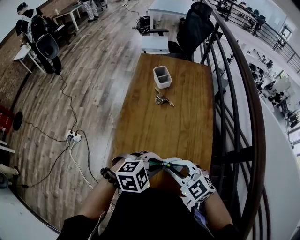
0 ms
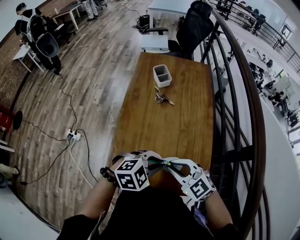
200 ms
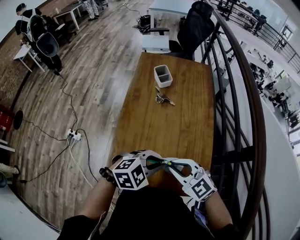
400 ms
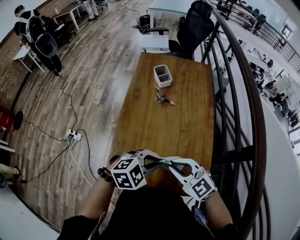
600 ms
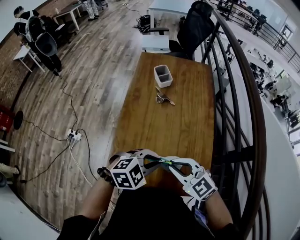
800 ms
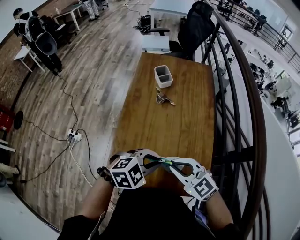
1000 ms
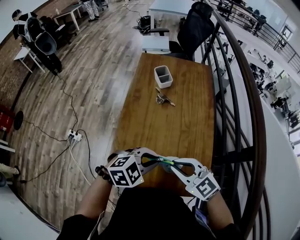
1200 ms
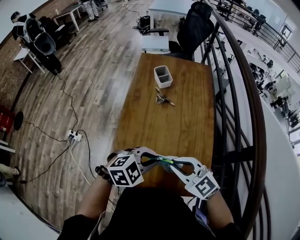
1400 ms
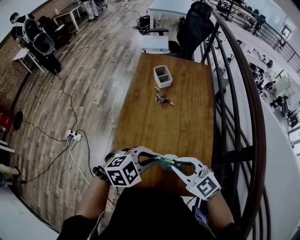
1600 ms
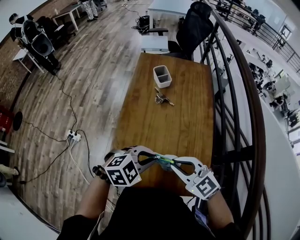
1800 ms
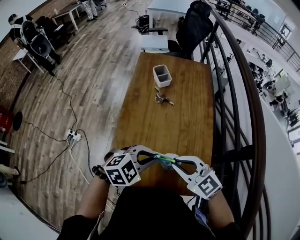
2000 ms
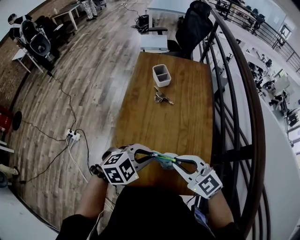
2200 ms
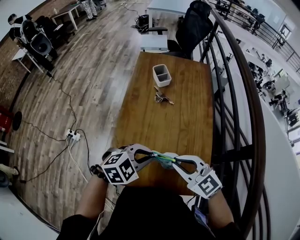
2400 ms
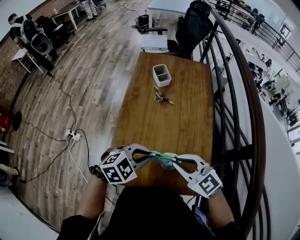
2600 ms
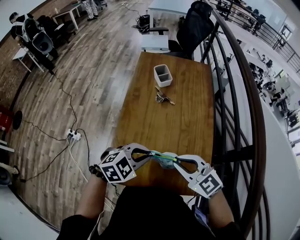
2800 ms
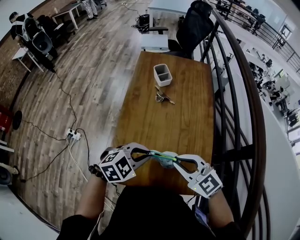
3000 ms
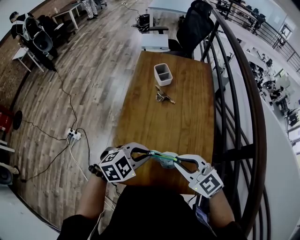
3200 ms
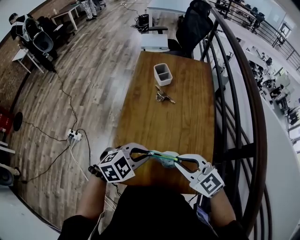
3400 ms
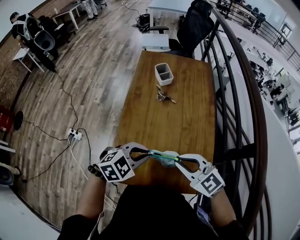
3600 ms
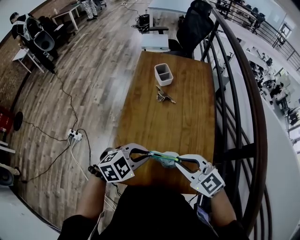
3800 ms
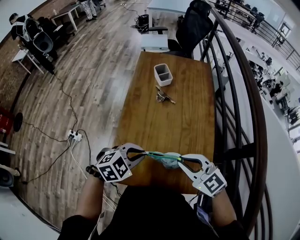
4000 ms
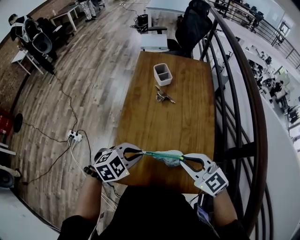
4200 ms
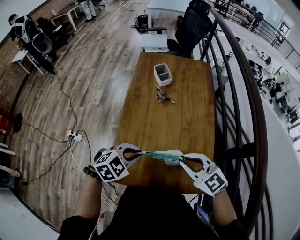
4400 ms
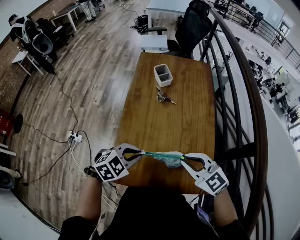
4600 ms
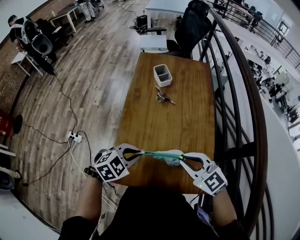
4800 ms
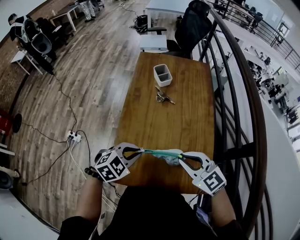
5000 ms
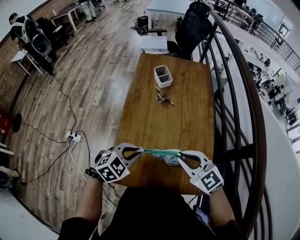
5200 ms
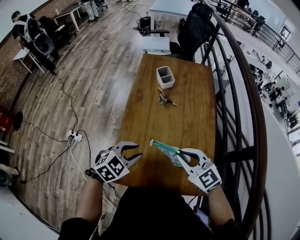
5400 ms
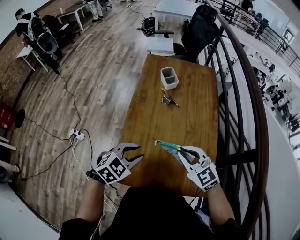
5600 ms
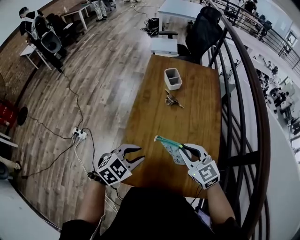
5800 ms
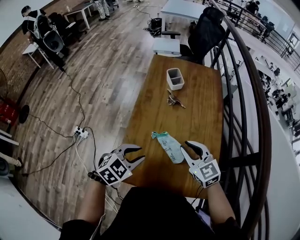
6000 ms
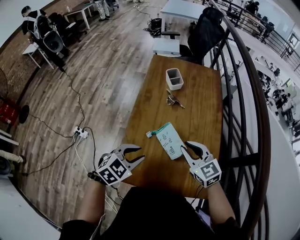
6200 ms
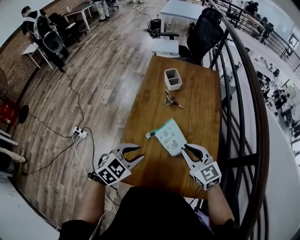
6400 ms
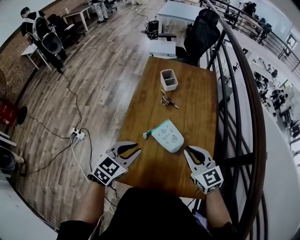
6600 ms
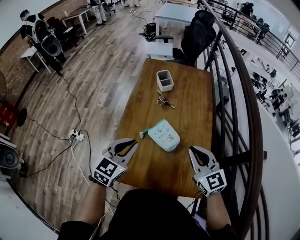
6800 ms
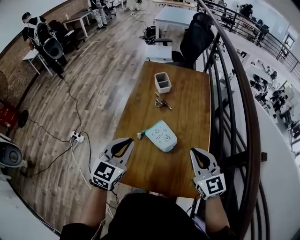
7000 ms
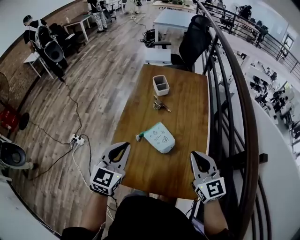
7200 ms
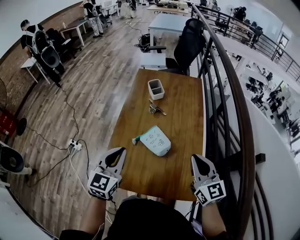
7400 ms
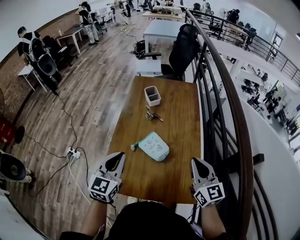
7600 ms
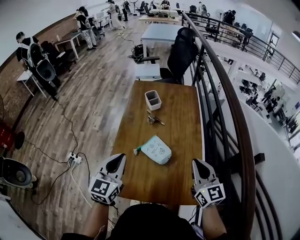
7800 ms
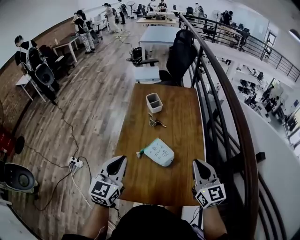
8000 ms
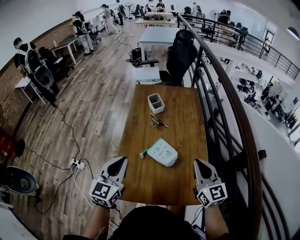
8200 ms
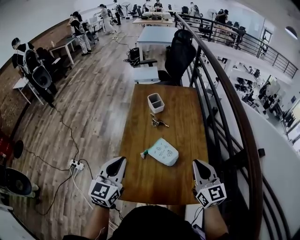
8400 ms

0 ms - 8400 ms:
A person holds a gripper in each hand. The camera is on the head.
0 ms - 1400 ms: The grippers move only a little.
1400 ms - 2800 ms: The grippers stay close to where they were, moving slightly.
2800 ms - 4200 ms: The grippers make only small movements.
4200 ms - 5600 ms: The right gripper changes place by about 5 cm.
5600 ms - 7000 ms: The right gripper heads to the right and upward, covering roughly 10 cm, and turns by roughly 20 degrees. Meanwhile the left gripper goes roughly 10 cm upward, turns by some 40 degrees, and closes.
7000 ms - 8400 ms: The left gripper travels to the left by roughly 5 cm.

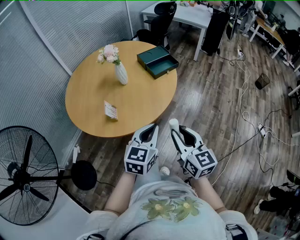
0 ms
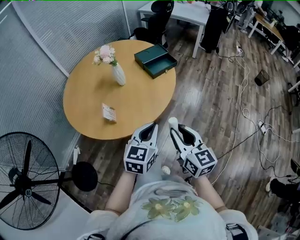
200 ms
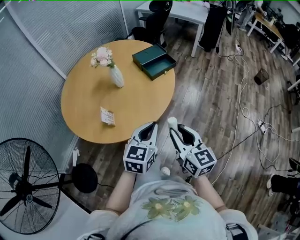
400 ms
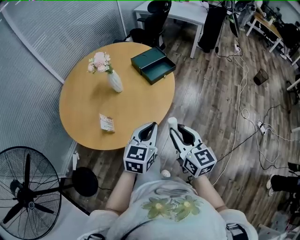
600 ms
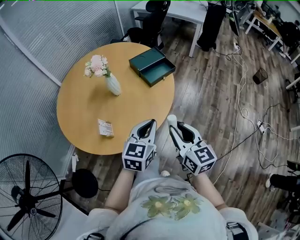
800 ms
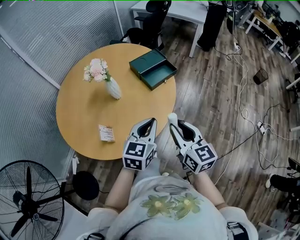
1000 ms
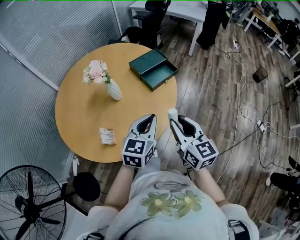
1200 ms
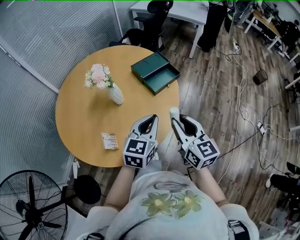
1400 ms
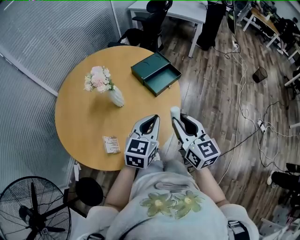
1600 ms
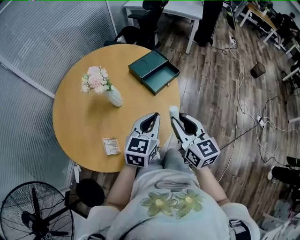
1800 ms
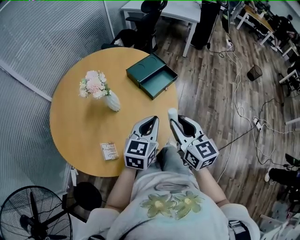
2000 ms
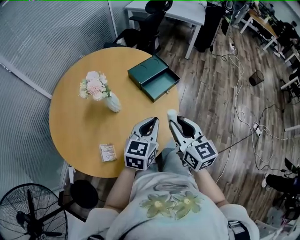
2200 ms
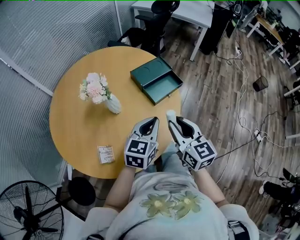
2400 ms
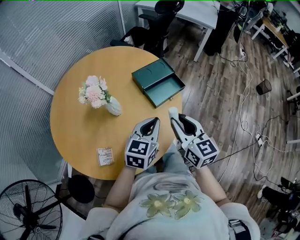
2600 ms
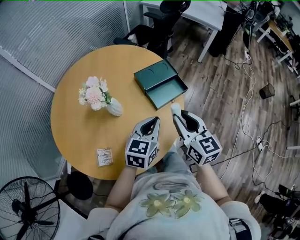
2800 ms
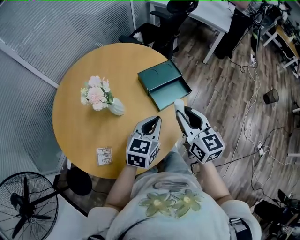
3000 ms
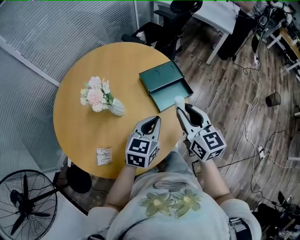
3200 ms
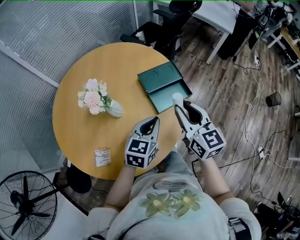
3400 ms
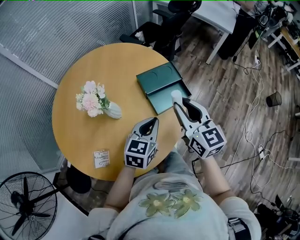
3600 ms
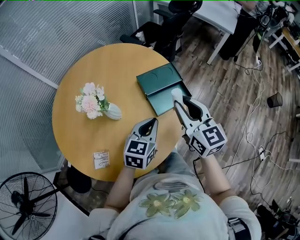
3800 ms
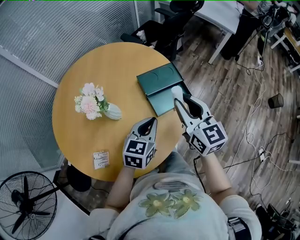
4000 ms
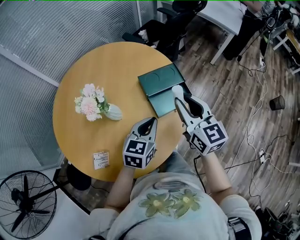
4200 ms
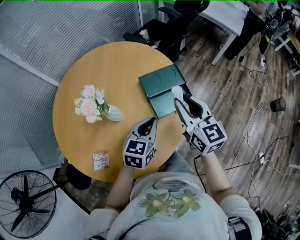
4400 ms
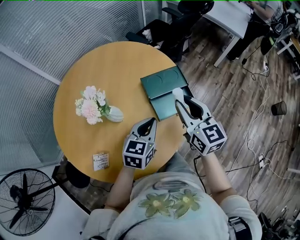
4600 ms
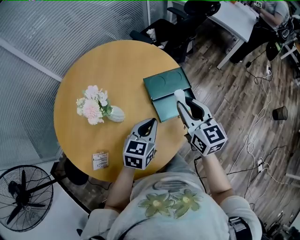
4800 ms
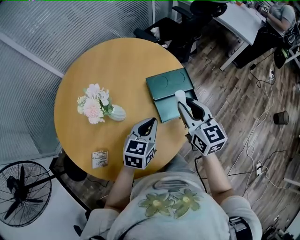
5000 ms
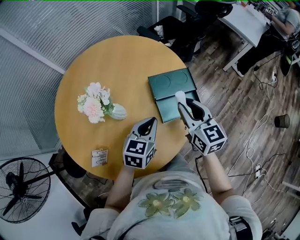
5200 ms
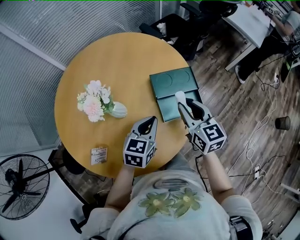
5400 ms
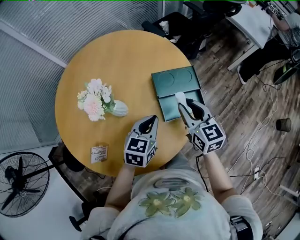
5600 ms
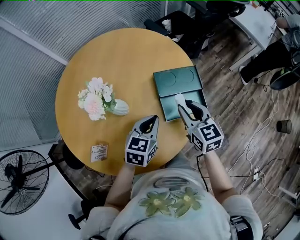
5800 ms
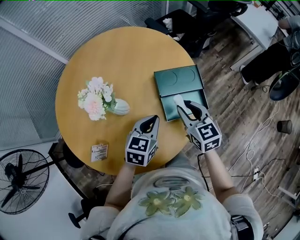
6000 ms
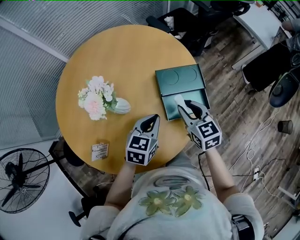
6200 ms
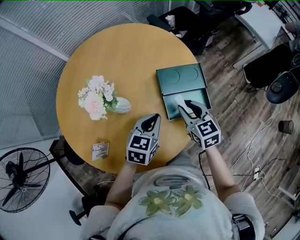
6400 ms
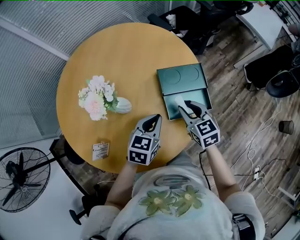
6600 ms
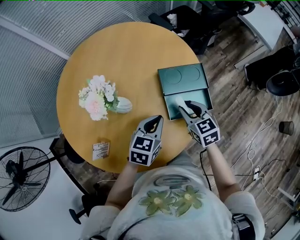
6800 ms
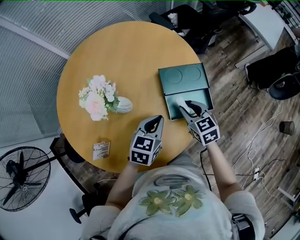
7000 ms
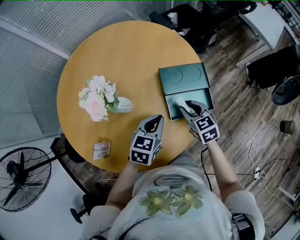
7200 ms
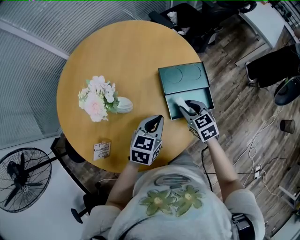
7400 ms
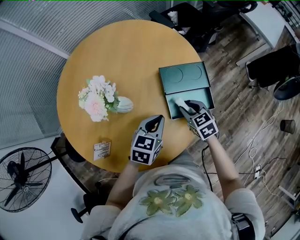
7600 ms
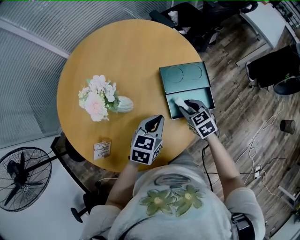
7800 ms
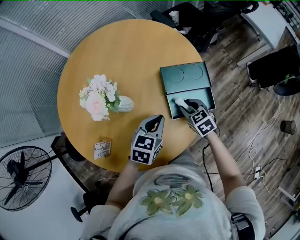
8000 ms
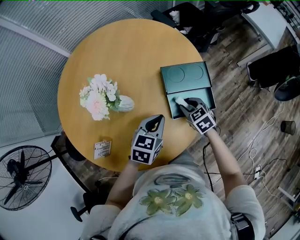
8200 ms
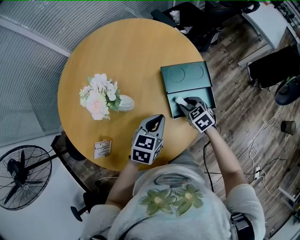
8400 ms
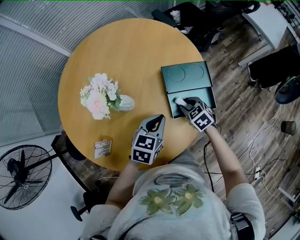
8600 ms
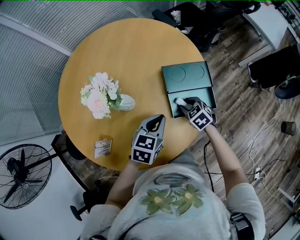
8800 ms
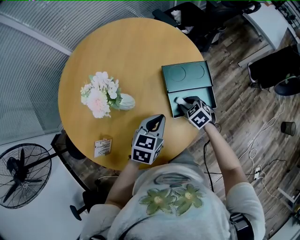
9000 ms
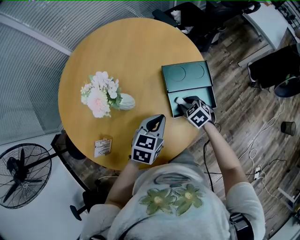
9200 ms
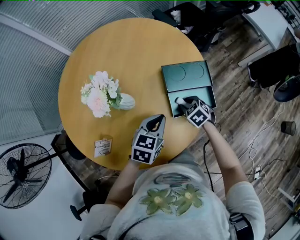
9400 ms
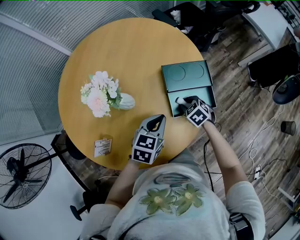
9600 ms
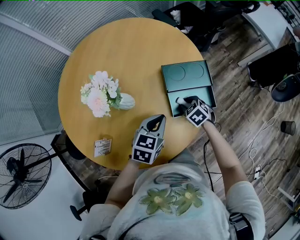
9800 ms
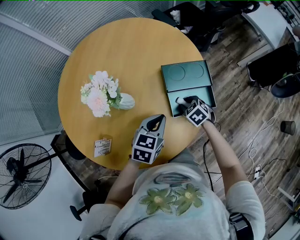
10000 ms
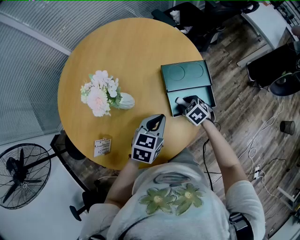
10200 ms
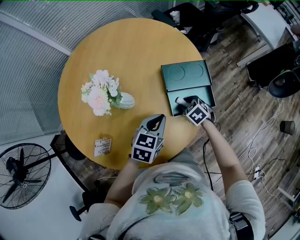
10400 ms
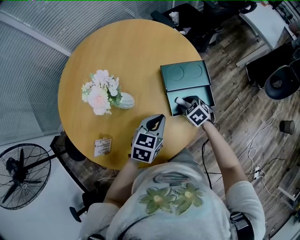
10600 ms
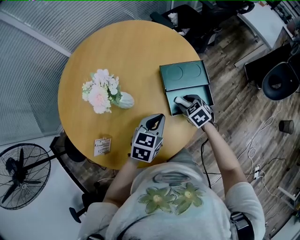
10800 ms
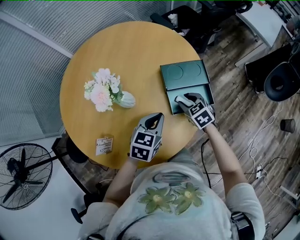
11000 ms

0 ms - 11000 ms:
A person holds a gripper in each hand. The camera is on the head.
0 ms - 1600 ms: The grippers both shift forward by approximately 30 cm.
1600 ms - 3200 ms: Both grippers move forward, about 20 cm.
3200 ms - 4800 ms: The left gripper heads forward, covering approximately 5 cm. Meanwhile the right gripper travels forward by about 10 cm.
4800 ms - 6200 ms: The left gripper moves roughly 5 cm; the right gripper heads downward, covering some 10 cm, and swivels approximately 20 degrees.
6200 ms - 7800 ms: The right gripper moves downward, some 10 cm, and changes its angle by roughly 20 degrees.
7800 ms - 9400 ms: The right gripper travels downward by about 5 cm.
9400 ms - 11000 ms: The right gripper shifts approximately 5 cm upward.

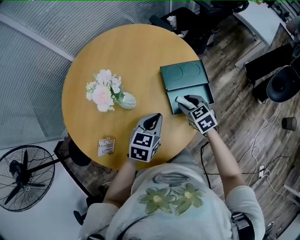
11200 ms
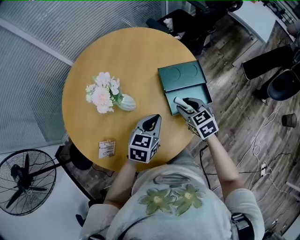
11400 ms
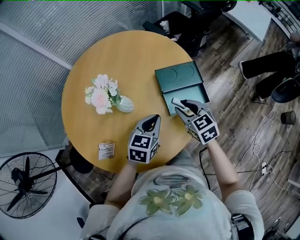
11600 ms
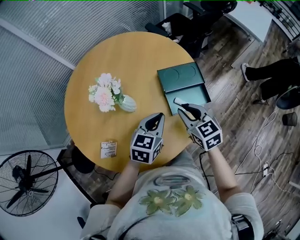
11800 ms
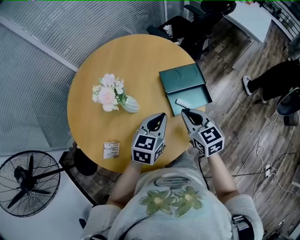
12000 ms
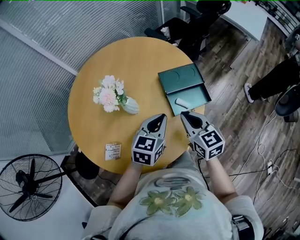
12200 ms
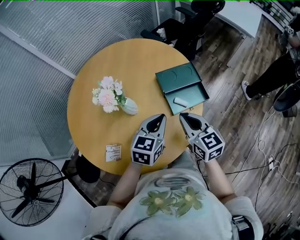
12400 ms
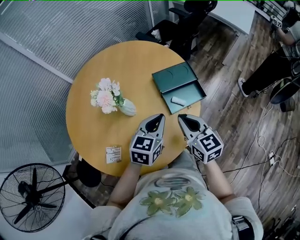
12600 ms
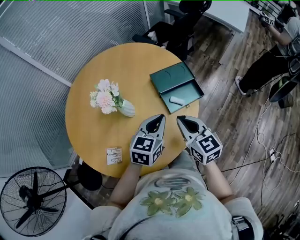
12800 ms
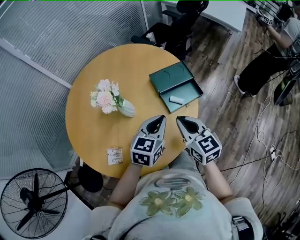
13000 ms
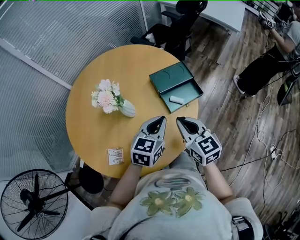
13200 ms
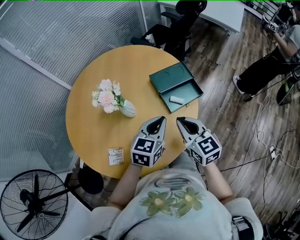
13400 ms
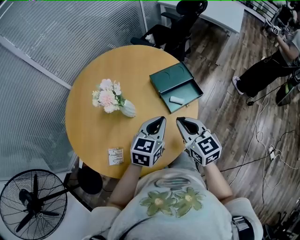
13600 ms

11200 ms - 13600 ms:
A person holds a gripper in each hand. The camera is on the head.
11200 ms - 12400 ms: The left gripper travels upward by some 5 cm. Meanwhile the right gripper travels upward and backward by about 20 cm, turns by some 30 degrees, and closes its fingers.
12400 ms - 13600 ms: The right gripper moves backward, approximately 5 cm.

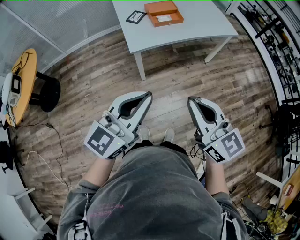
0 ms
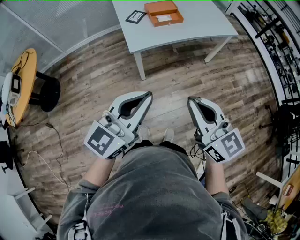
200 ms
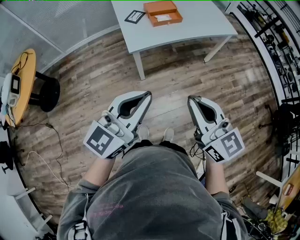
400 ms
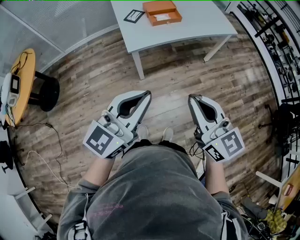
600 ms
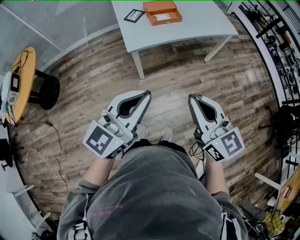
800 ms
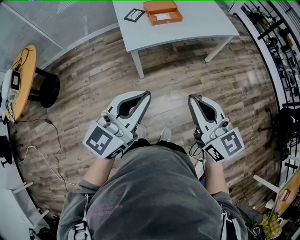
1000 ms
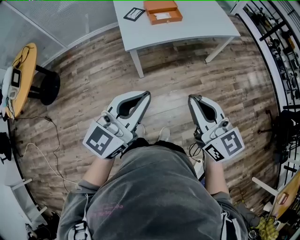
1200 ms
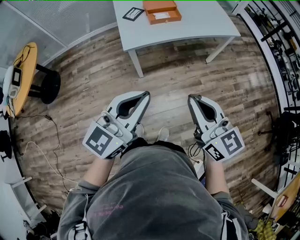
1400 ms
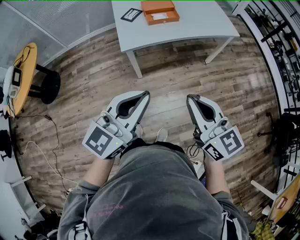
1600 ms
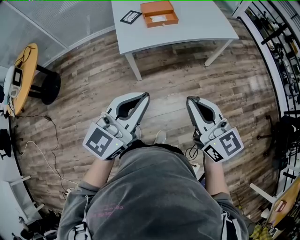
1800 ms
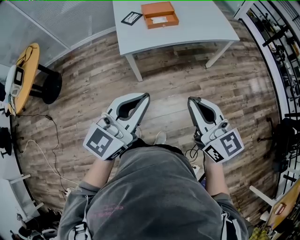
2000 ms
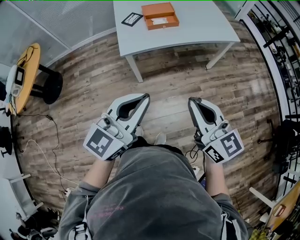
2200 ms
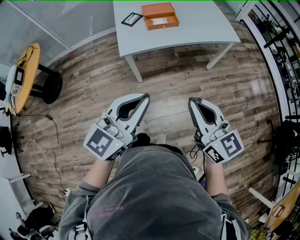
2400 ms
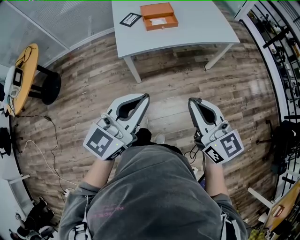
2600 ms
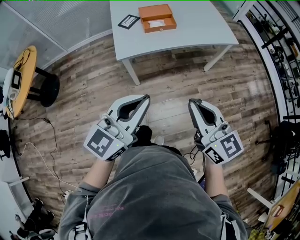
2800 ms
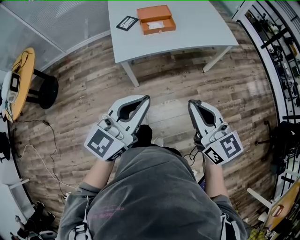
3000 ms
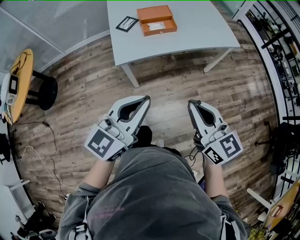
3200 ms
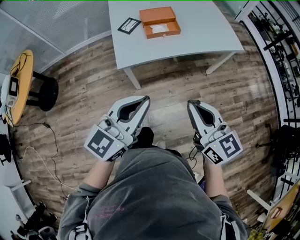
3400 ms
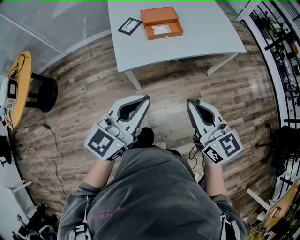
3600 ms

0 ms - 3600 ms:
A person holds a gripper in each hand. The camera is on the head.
0 ms - 1800 ms: The two grippers go some 10 cm to the right.
1800 ms - 3600 ms: Both grippers move forward, roughly 15 cm.
